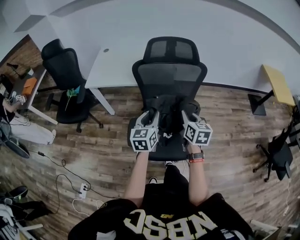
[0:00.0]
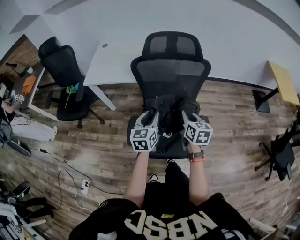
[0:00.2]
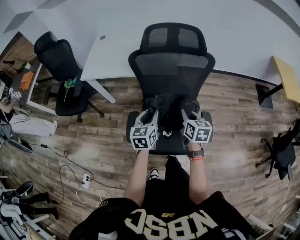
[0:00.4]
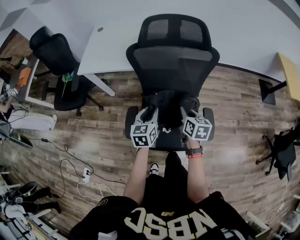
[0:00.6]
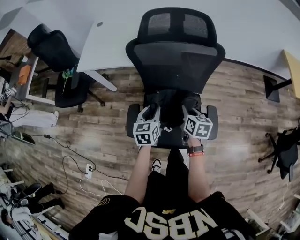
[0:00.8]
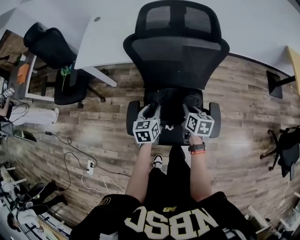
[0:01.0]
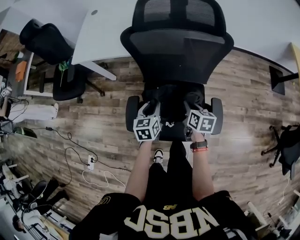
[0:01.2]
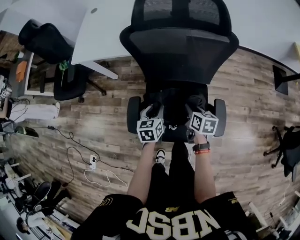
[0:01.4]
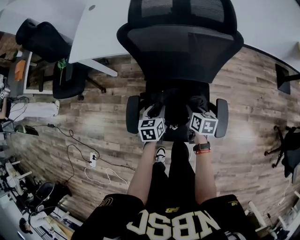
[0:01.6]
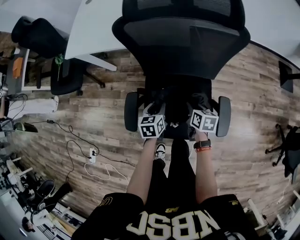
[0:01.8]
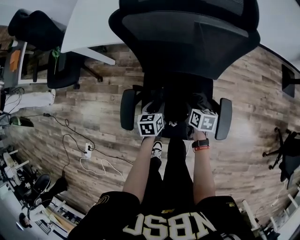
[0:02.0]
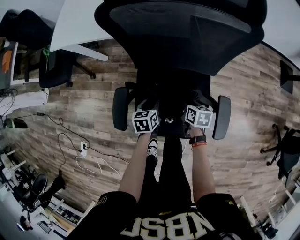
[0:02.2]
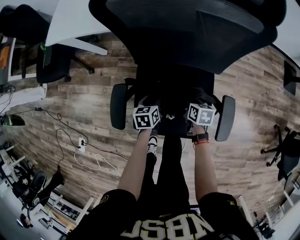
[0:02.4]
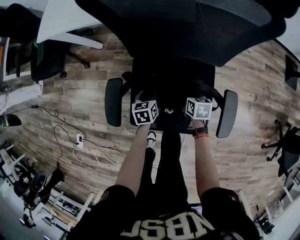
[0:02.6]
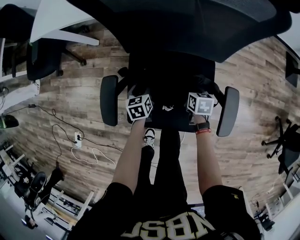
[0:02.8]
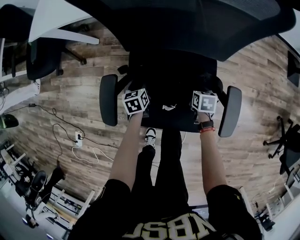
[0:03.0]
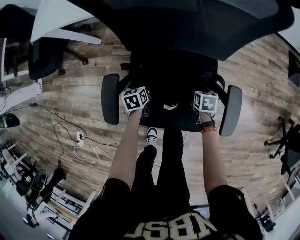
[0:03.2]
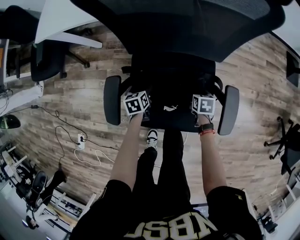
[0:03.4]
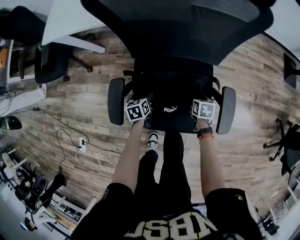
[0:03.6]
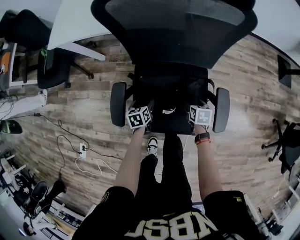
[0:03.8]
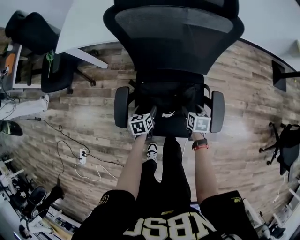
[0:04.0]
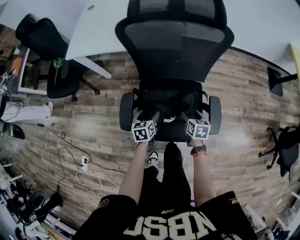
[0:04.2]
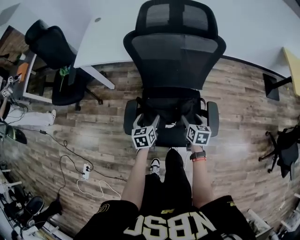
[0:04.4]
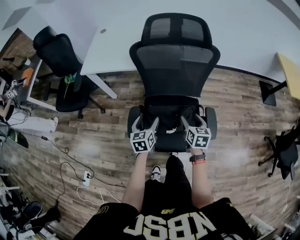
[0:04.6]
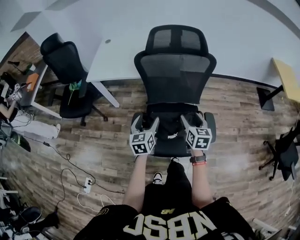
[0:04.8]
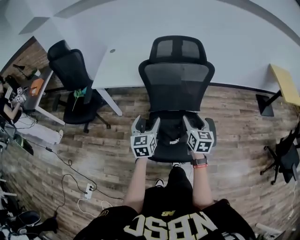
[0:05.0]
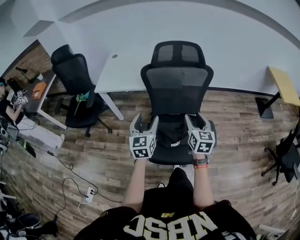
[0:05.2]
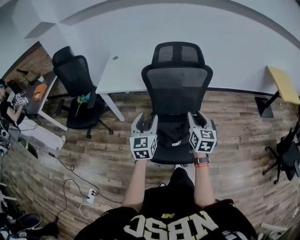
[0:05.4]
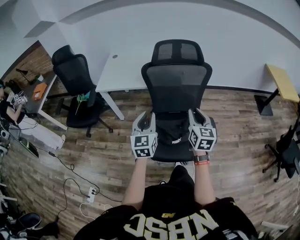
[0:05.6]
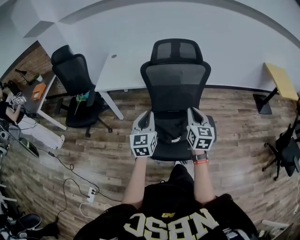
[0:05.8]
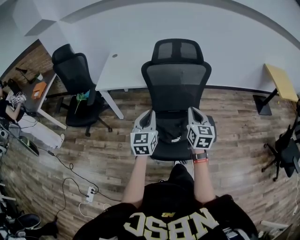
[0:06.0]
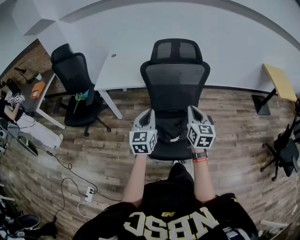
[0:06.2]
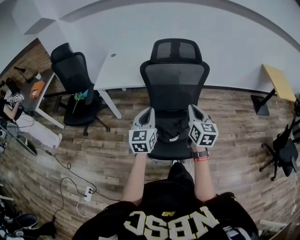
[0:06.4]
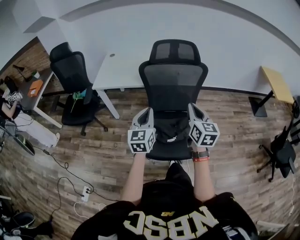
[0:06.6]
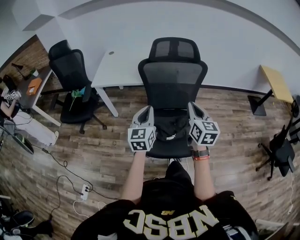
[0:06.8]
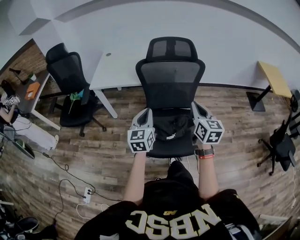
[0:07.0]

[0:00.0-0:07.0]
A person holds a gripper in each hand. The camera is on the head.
0:00.0 to 0:01.4: The two grippers go approximately 25 cm downward. The right gripper changes its angle by approximately 30 degrees. The left gripper rotates about 30 degrees.
0:01.4 to 0:02.8: The grippers both shift downward by approximately 25 cm.
0:02.8 to 0:04.2: The two grippers go approximately 20 cm upward and backward. The left gripper opens; the right gripper opens.
0:04.2 to 0:05.6: Both grippers travel together upward, about 35 cm. The left gripper angles its fingers upward, by about 40 degrees, and closes its fingers, while the right gripper tips its fingers upward by about 40 degrees, and closes its fingers.
0:05.6 to 0:07.0: There are only small adjustments of the grippers.

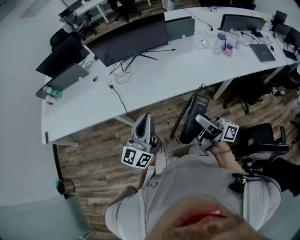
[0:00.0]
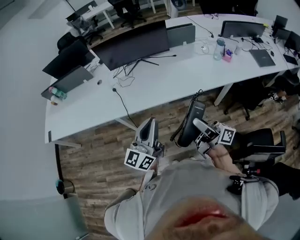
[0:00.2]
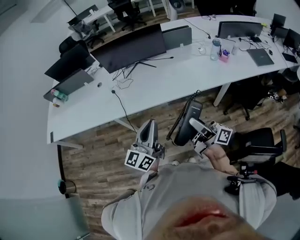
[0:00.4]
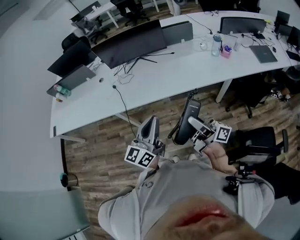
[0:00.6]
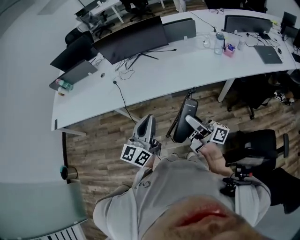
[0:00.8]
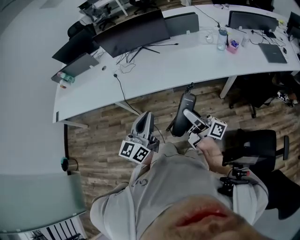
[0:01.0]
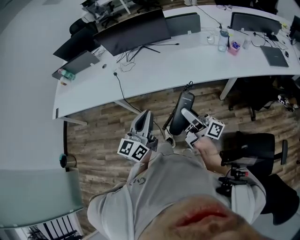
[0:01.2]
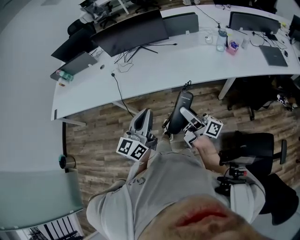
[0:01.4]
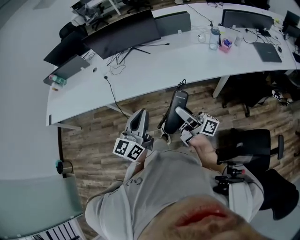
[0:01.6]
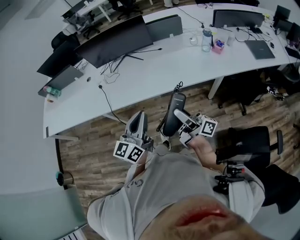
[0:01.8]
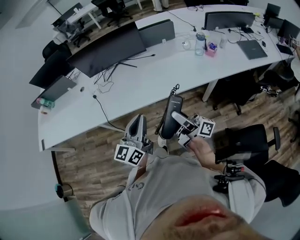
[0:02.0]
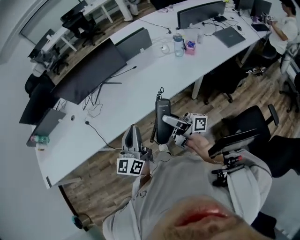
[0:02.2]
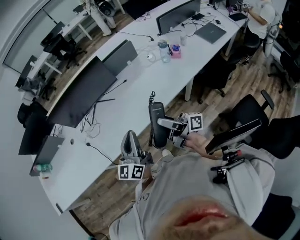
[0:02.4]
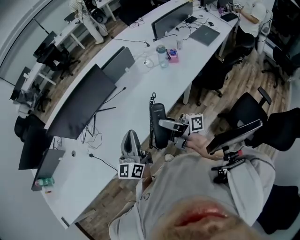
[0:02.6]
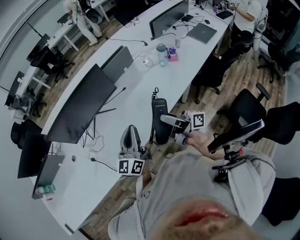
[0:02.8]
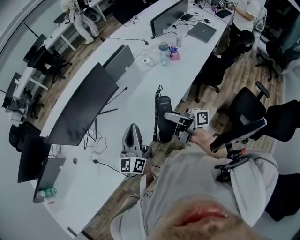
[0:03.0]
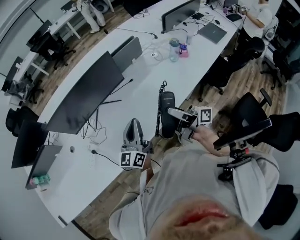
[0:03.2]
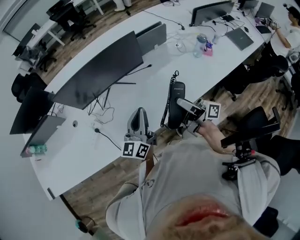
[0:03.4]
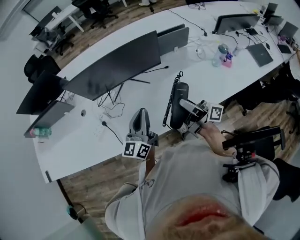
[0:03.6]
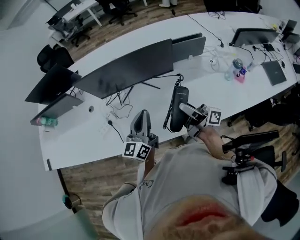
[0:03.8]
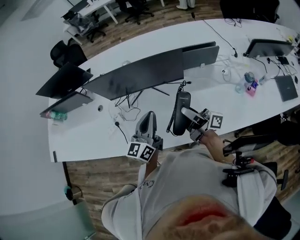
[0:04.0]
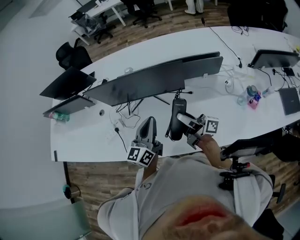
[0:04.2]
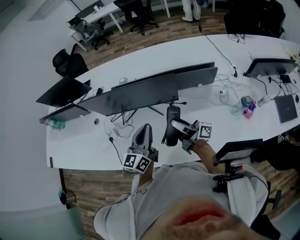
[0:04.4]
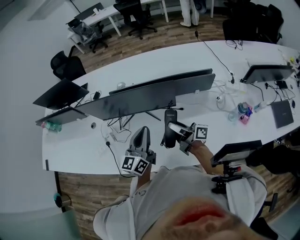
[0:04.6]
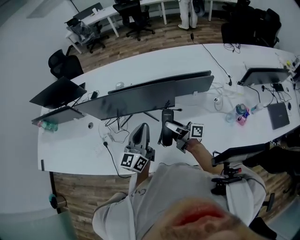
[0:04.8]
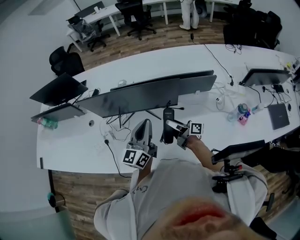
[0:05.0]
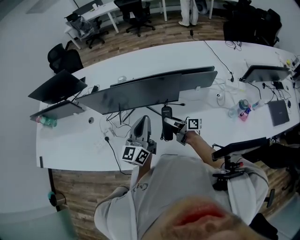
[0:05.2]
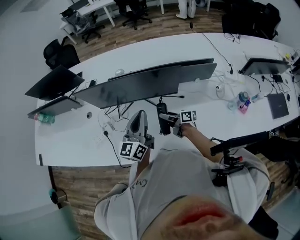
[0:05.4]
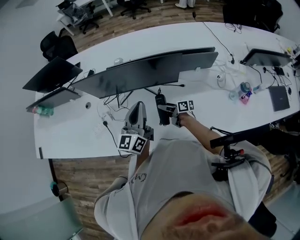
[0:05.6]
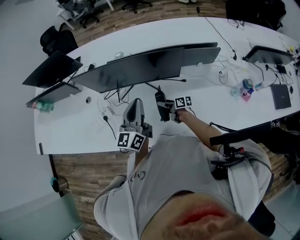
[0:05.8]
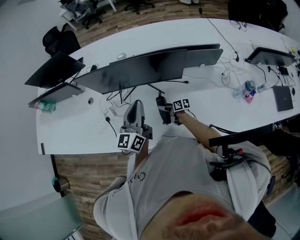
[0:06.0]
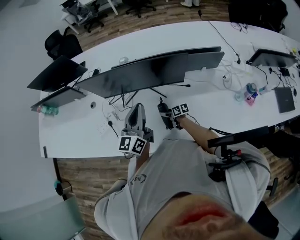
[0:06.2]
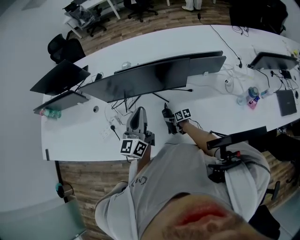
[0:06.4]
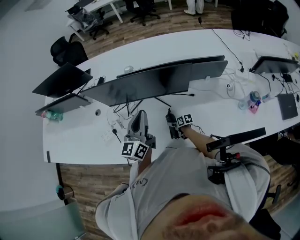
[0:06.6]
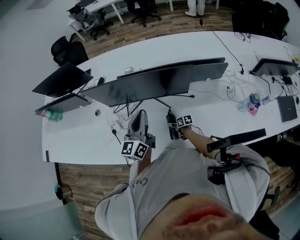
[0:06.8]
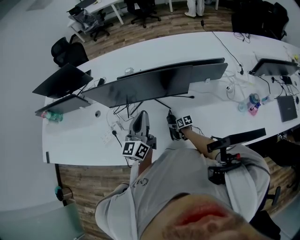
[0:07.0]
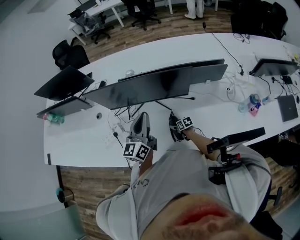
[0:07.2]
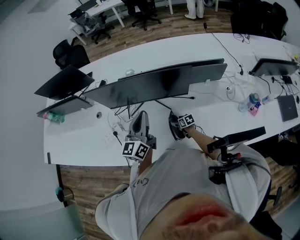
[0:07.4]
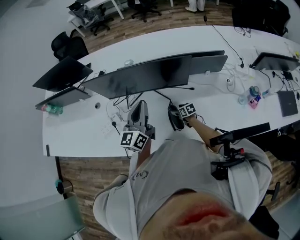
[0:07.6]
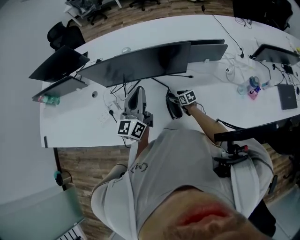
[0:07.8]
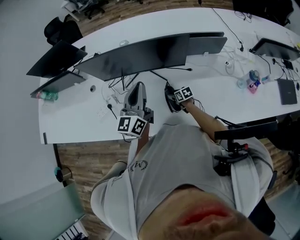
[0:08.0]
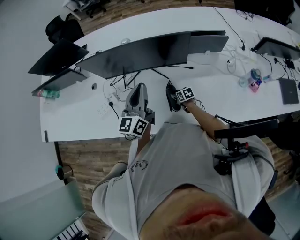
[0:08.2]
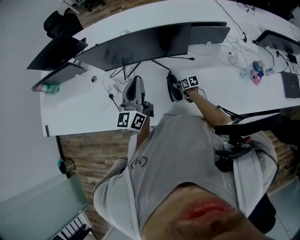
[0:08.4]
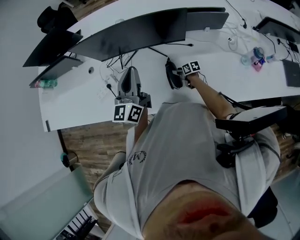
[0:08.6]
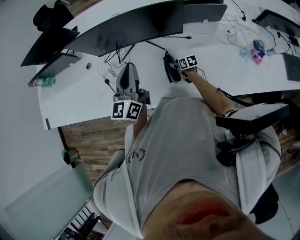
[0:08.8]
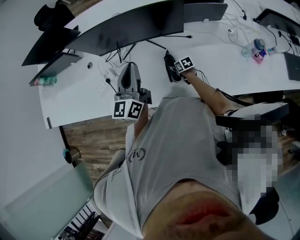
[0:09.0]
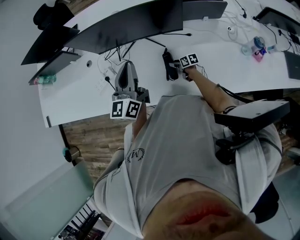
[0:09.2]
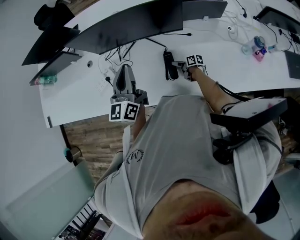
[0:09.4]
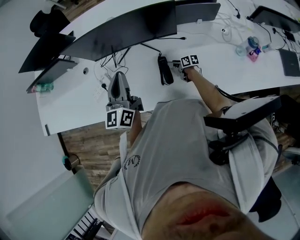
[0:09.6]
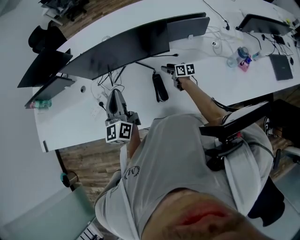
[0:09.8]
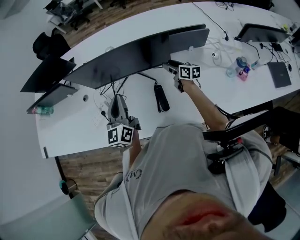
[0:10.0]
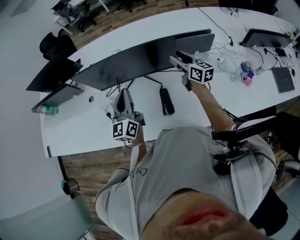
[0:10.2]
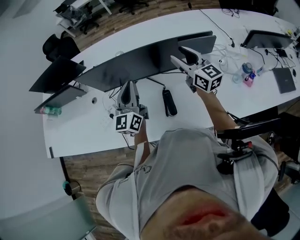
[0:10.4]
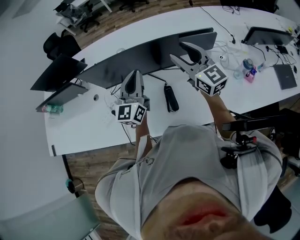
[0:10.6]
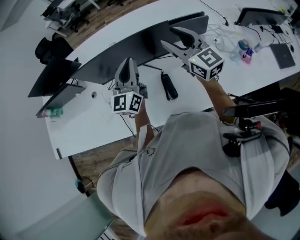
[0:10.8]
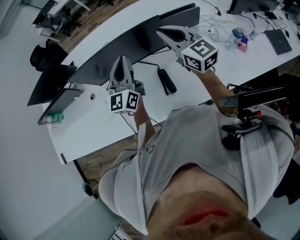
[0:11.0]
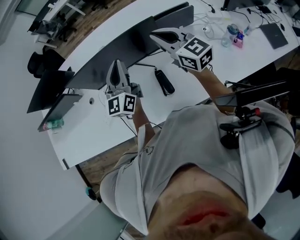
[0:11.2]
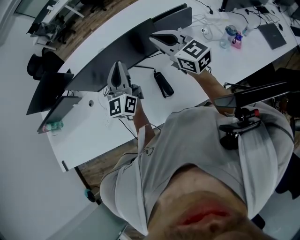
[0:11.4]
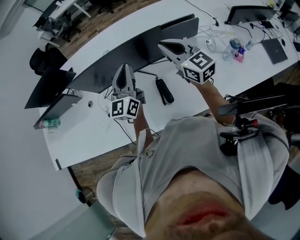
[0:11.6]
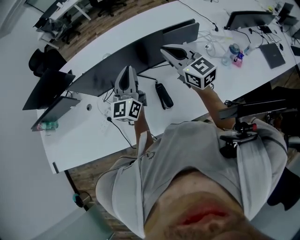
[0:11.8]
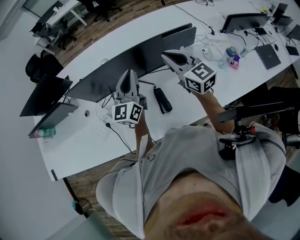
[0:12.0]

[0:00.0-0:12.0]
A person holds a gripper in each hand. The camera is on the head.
0:00.0 to 0:01.6: The left gripper goes about 20 cm to the right and backward; the right gripper is displaced to the right and downward by approximately 15 cm.
0:01.6 to 0:03.0: The grippers both shift forward by about 30 cm. The right gripper turns by some 20 degrees, while the left gripper turns by about 30 degrees.
0:03.0 to 0:04.4: The right gripper ends up about 30 cm from where it was, and changes its angle by about 30 degrees. Meanwhile the left gripper moves roughly 20 cm, and rotates about 30 degrees.
0:04.4 to 0:06.0: The right gripper moves downward, approximately 35 cm, and tips its fingers downward by roughly 40 degrees; the left gripper heads to the left, covering some 10 cm.
0:06.0 to 0:07.6: The right gripper shifts about 10 cm to the right and downward, and swivels approximately 30 degrees.
0:07.6 to 0:09.0: The left gripper shifts by roughly 5 cm.
0:09.0 to 0:10.4: The right gripper goes some 50 cm upward, and tips its fingers upward by some 50 degrees; the left gripper is displaced forward by some 5 cm.
0:10.4 to 0:12.0: The left gripper changes place by some 5 cm. The right gripper changes place by about 5 cm, and closes up.

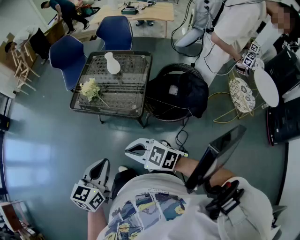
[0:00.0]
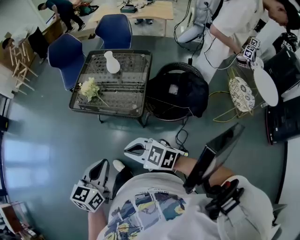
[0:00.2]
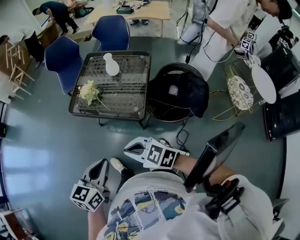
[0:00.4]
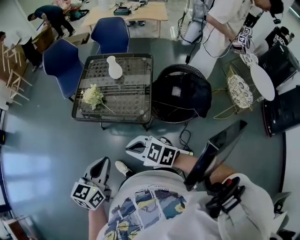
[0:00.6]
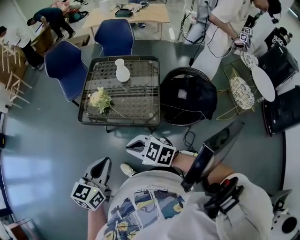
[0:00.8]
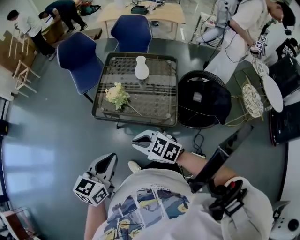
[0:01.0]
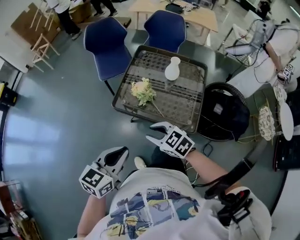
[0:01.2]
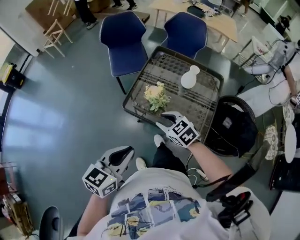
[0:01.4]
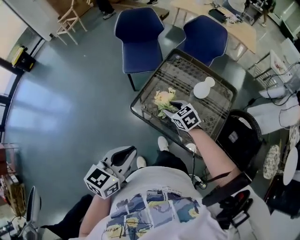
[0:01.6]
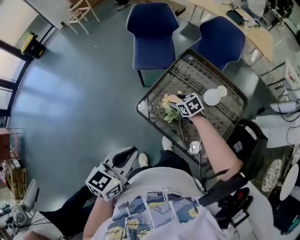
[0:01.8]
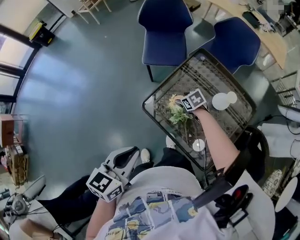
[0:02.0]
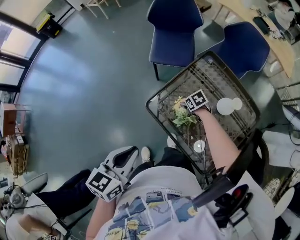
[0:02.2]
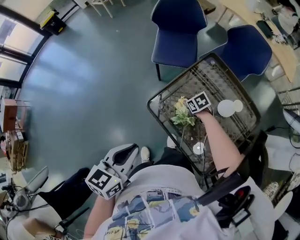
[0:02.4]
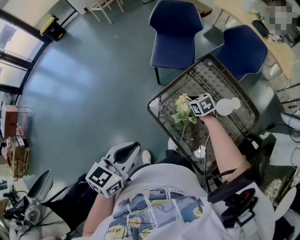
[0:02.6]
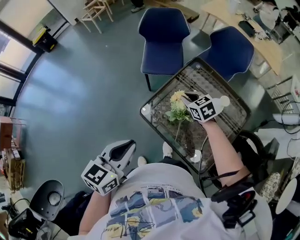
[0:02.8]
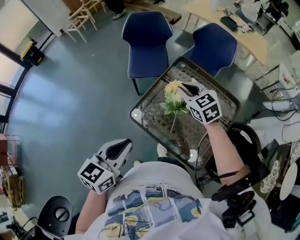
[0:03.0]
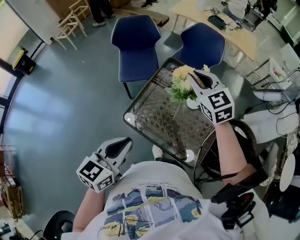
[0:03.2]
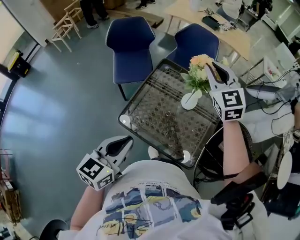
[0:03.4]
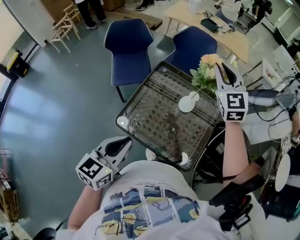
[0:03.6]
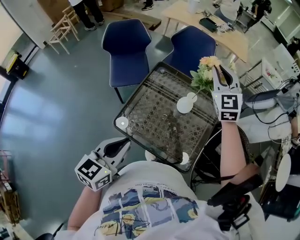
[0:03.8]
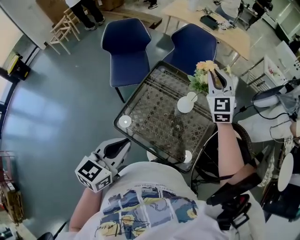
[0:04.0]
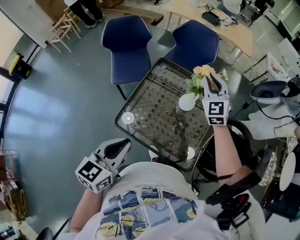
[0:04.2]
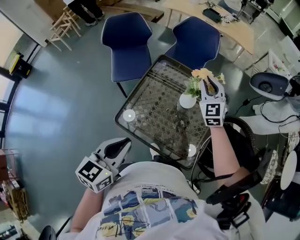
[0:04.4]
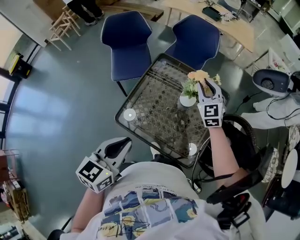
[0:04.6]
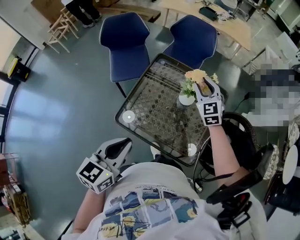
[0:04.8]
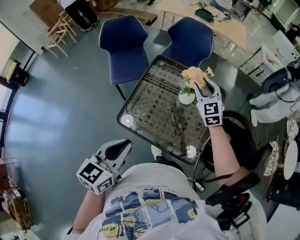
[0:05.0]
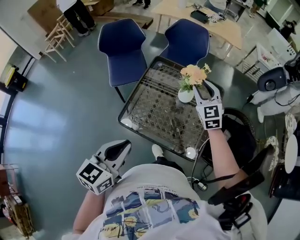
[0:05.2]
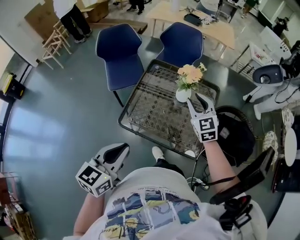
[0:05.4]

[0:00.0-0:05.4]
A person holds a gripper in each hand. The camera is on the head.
0:00.0 to 0:01.4: The right gripper travels forward by roughly 40 cm, and opens. The left gripper goes approximately 35 cm forward and to the left.
0:01.4 to 0:02.8: The left gripper changes place by some 10 cm, and turns by some 20 degrees. The right gripper reaches some 20 cm downward, then returns, and opens and closes again.
0:02.8 to 0:04.0: The left gripper moves about 10 cm, while the right gripper changes place by about 35 cm, and tilts its fingers approximately 30 degrees upward.
0:04.0 to 0:05.4: The right gripper is displaced backward and downward by about 20 cm. The left gripper moves backward, some 10 cm.
